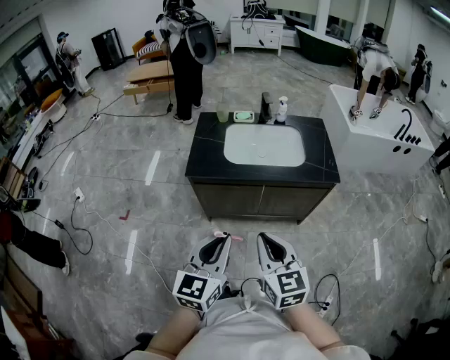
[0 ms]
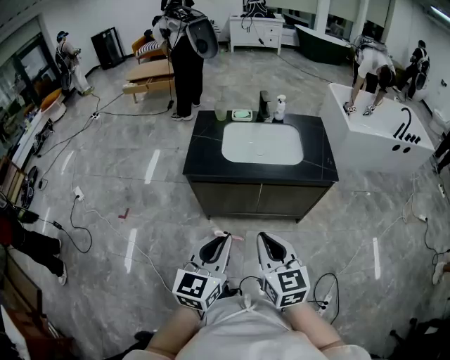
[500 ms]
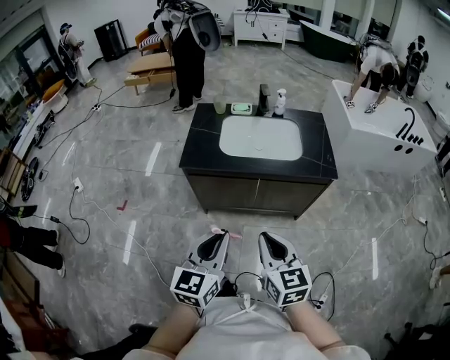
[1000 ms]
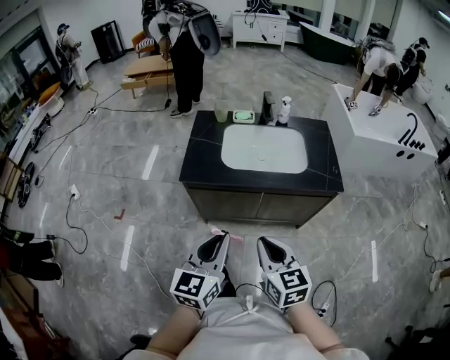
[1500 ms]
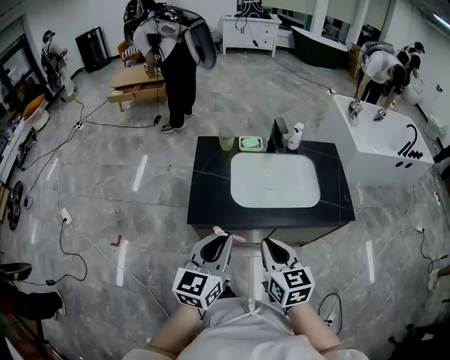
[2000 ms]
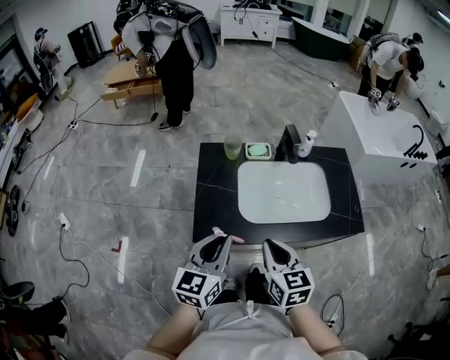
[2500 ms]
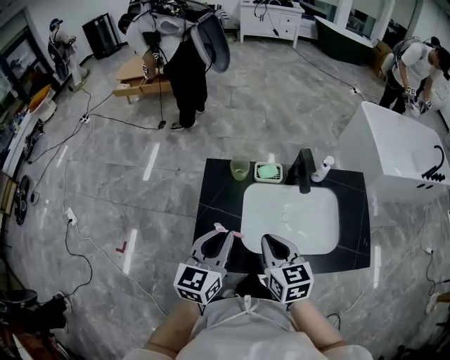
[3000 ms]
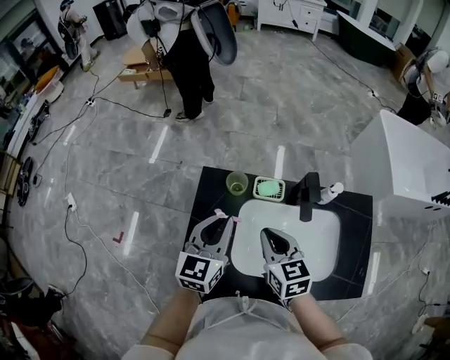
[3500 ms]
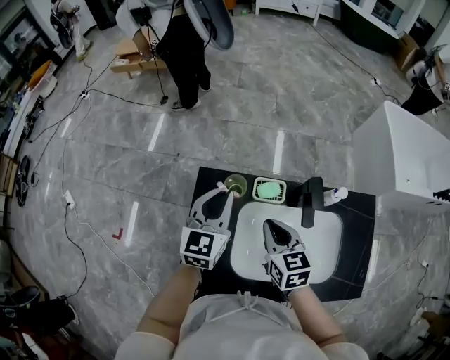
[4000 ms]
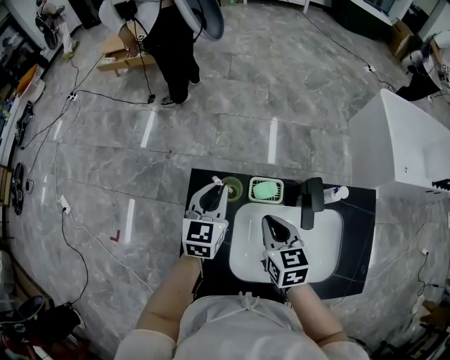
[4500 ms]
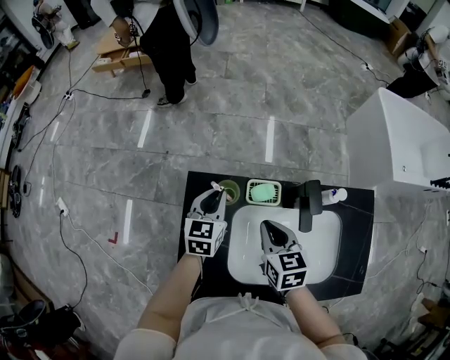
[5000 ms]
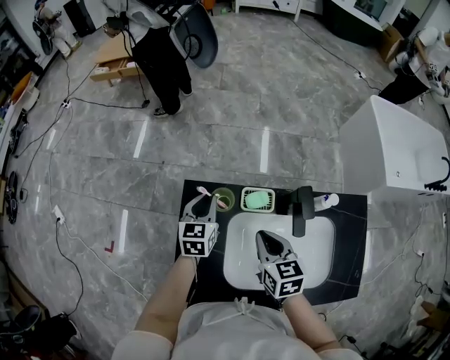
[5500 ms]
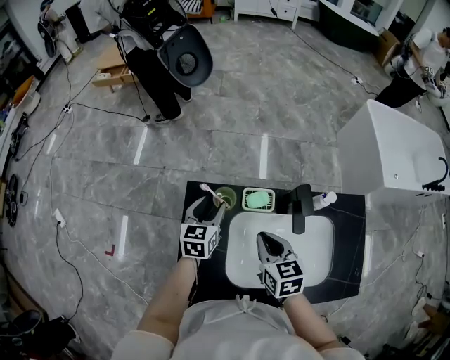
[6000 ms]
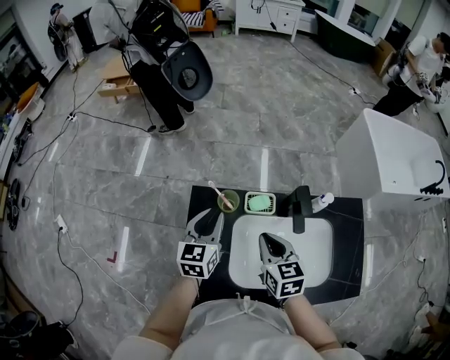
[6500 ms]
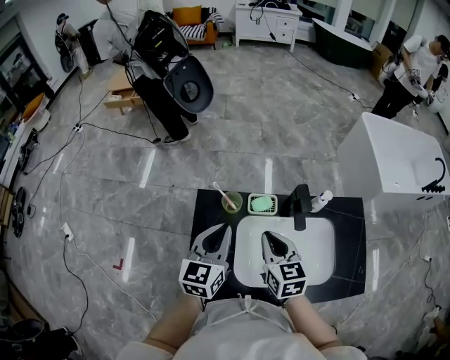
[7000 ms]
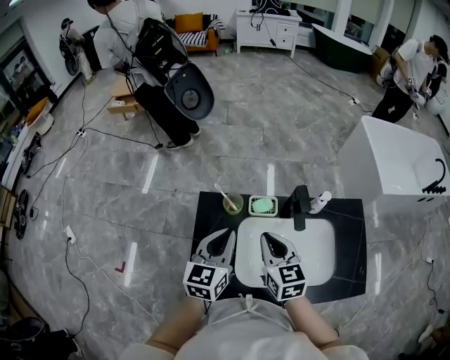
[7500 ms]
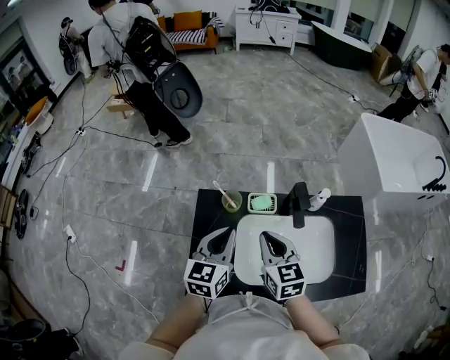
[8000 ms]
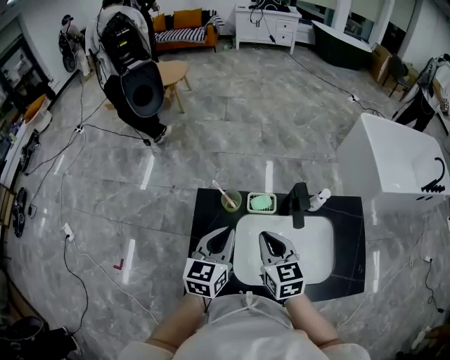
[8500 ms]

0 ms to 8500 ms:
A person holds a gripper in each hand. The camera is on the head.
0 ms to 2000 ms: The two grippers go approximately 20 cm forward.
2000 ms to 4000 ms: Both grippers move forward, about 40 cm.
4000 ms to 6500 ms: The left gripper opens, then closes once more.
6500 ms to 8500 ms: The left gripper shifts some 5 cm backward.

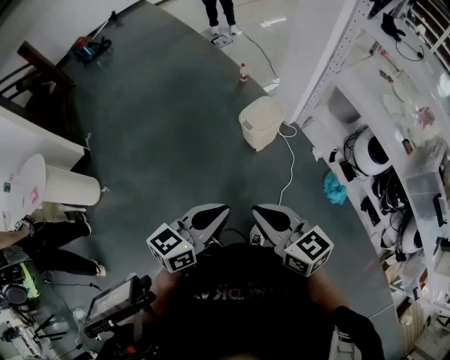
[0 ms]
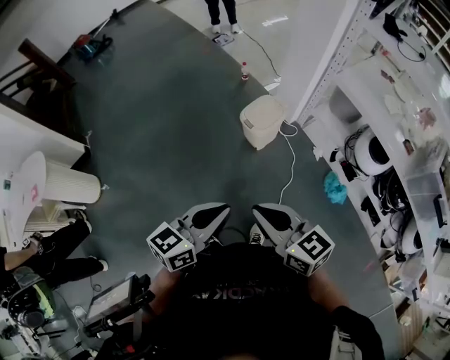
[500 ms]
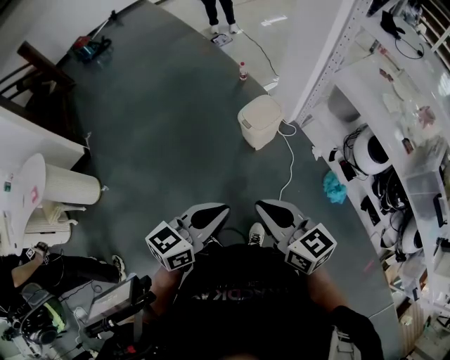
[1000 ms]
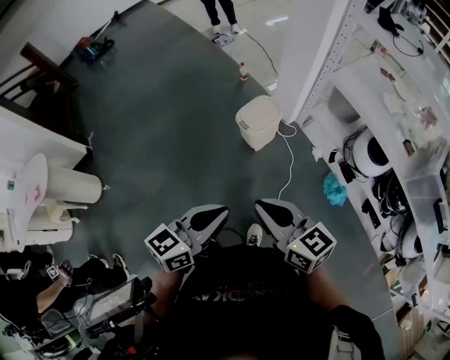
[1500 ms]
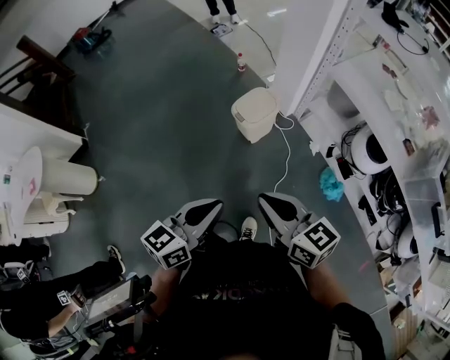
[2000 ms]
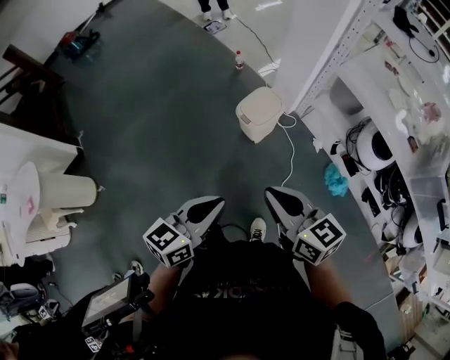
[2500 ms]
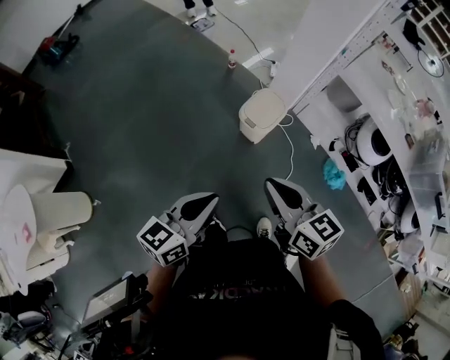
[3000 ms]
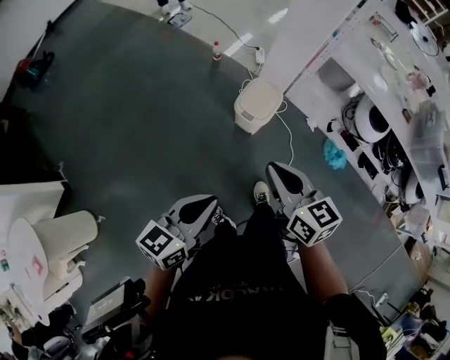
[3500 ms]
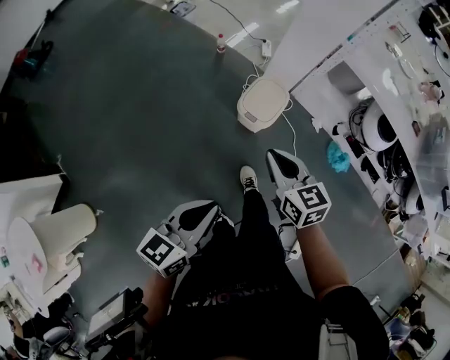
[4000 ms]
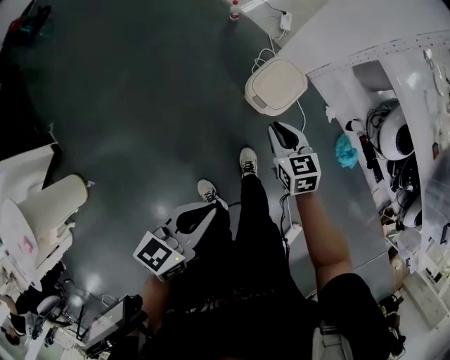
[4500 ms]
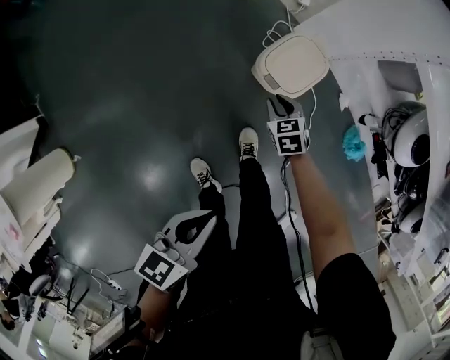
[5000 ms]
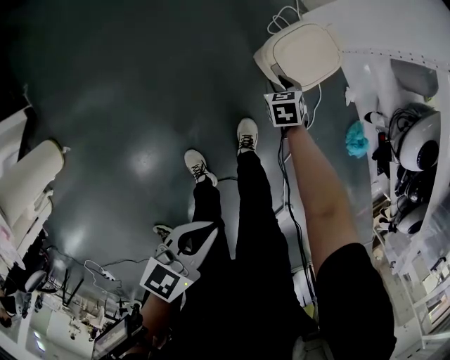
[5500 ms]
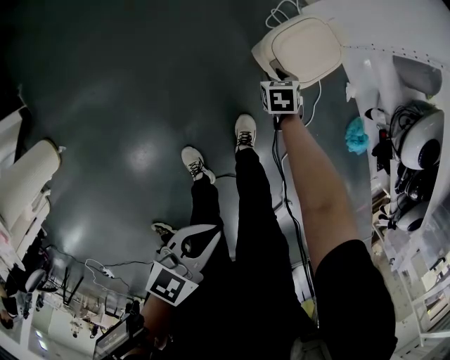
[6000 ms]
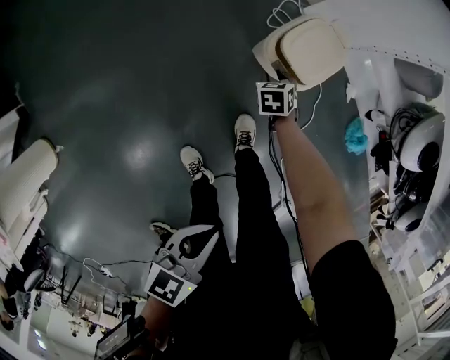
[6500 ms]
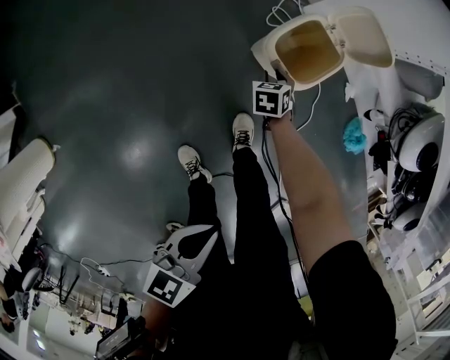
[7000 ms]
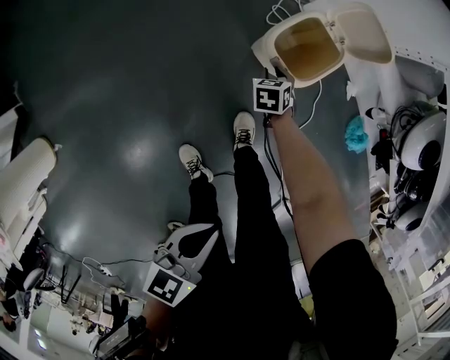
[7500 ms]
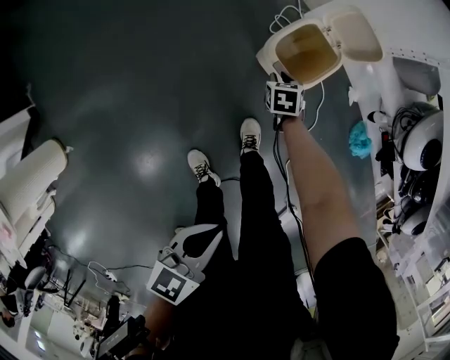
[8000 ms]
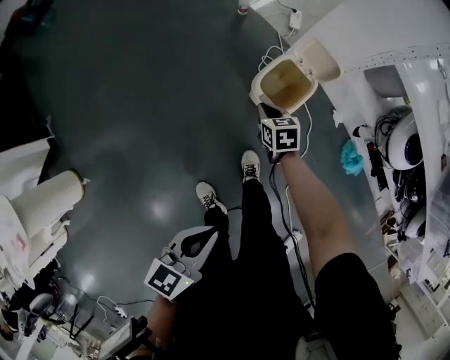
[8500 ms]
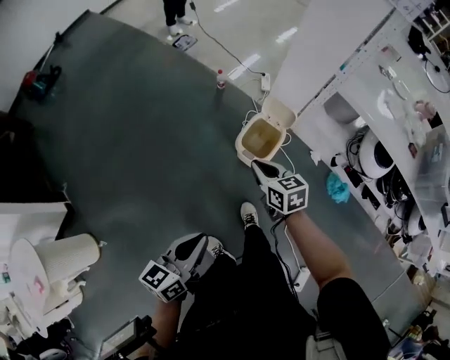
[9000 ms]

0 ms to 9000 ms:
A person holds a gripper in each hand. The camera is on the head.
0 ms to 2000 ms: The left gripper heads to the right, covering roughly 5 cm, while the right gripper heads to the right, covering about 10 cm.
2000 ms to 4500 ms: The right gripper travels forward, downward and to the left by some 50 cm, and swivels approximately 40 degrees. Meanwhile the left gripper moves to the left, forward and downward, some 35 cm.
4500 ms to 7000 ms: The right gripper travels downward by roughly 35 cm, and turns by about 30 degrees, while the left gripper is displaced downward by about 20 cm.
7000 ms to 9000 ms: The left gripper travels upward by roughly 20 cm, and swivels some 20 degrees; the right gripper travels upward by approximately 50 cm, tilts its fingers approximately 30 degrees upward, and closes its fingers.

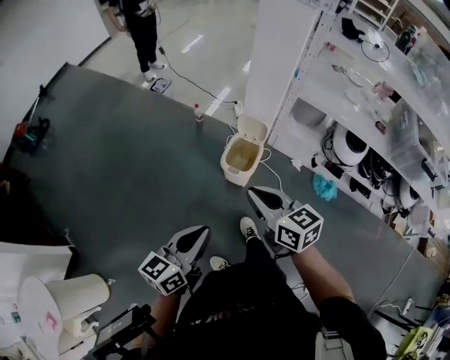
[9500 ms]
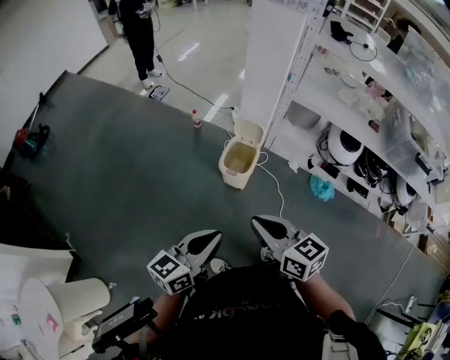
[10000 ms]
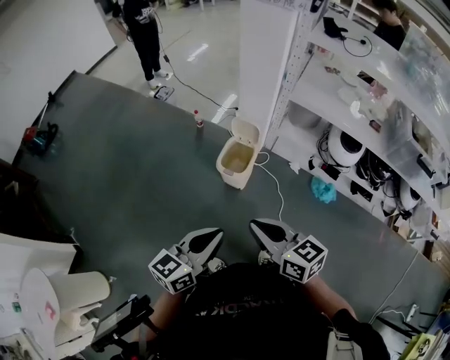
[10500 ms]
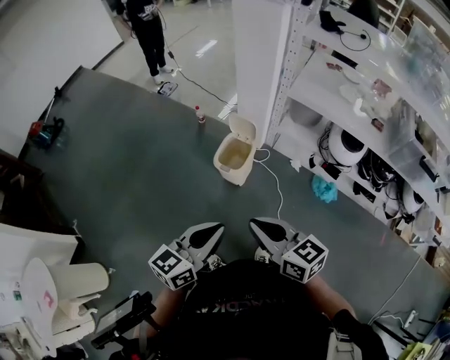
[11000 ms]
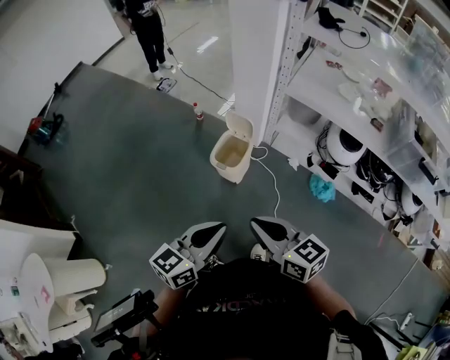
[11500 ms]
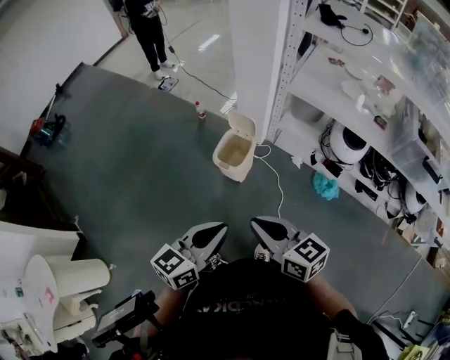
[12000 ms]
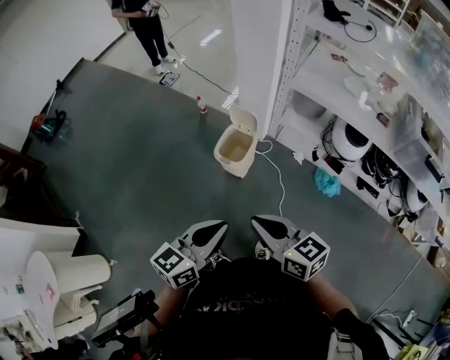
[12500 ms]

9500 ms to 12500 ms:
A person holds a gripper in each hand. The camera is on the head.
9500 ms to 11000 ms: The right gripper moves to the right and backward, about 20 cm. The left gripper shifts some 15 cm to the right.
11000 ms to 12500 ms: The grippers move only a little.

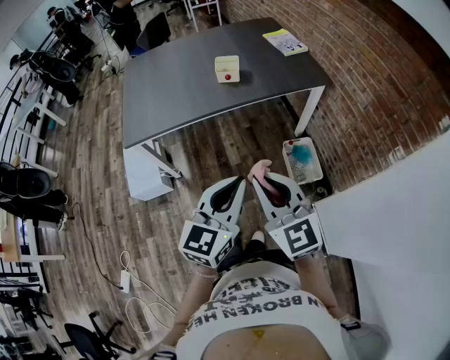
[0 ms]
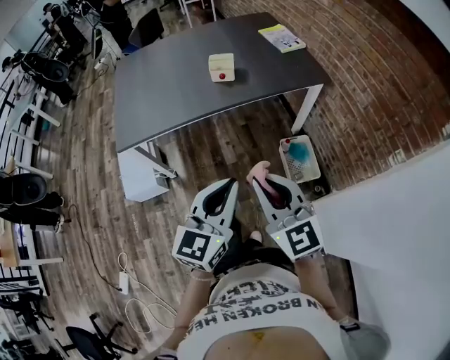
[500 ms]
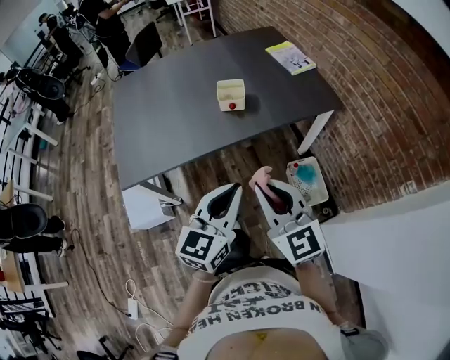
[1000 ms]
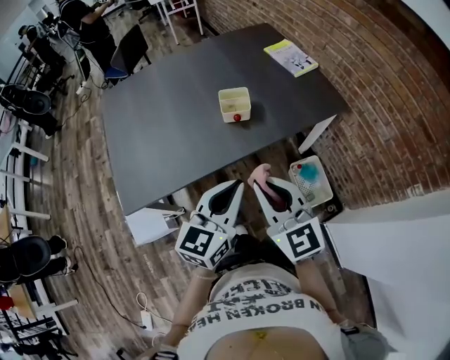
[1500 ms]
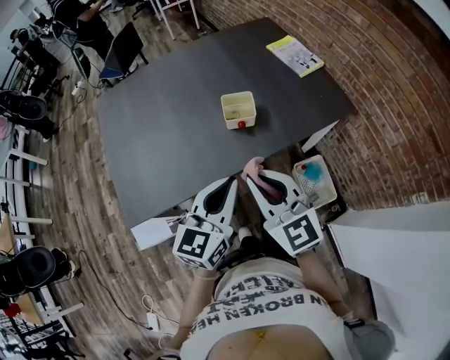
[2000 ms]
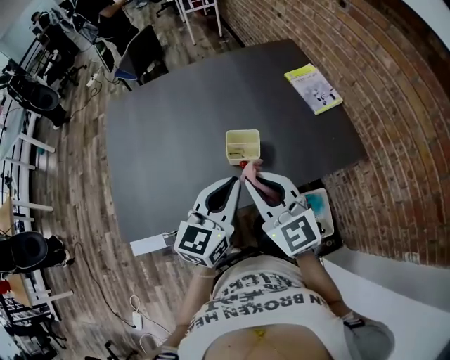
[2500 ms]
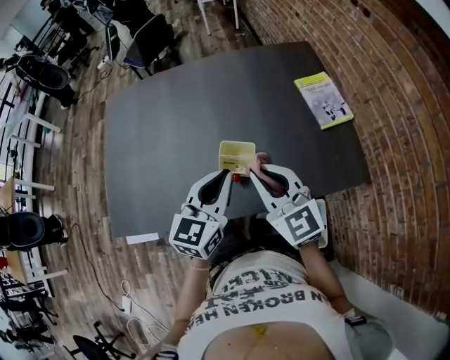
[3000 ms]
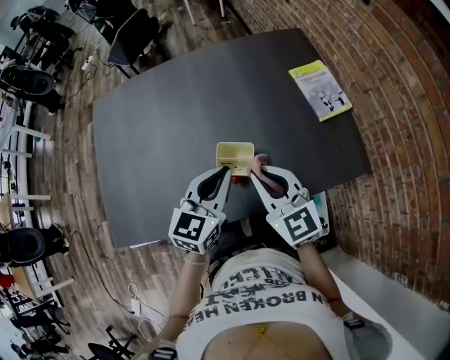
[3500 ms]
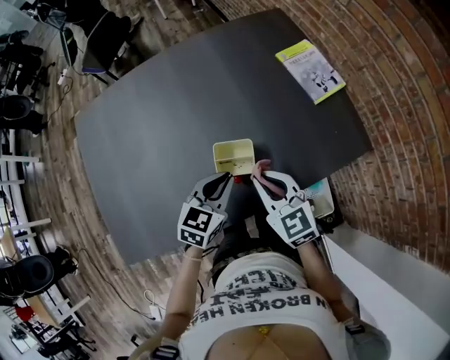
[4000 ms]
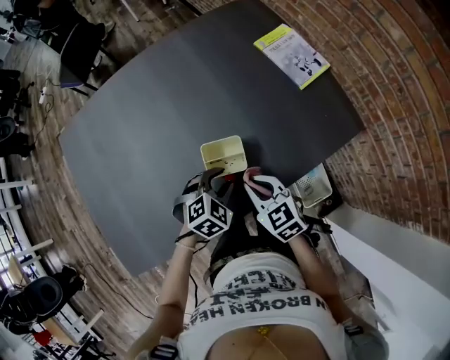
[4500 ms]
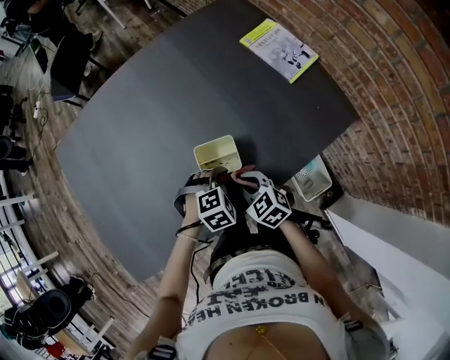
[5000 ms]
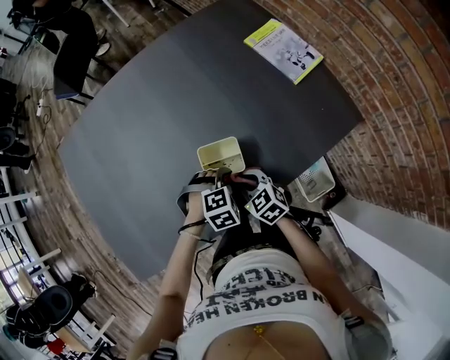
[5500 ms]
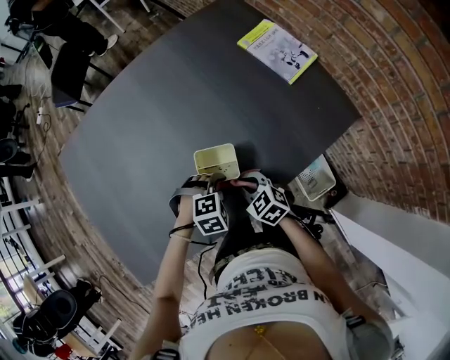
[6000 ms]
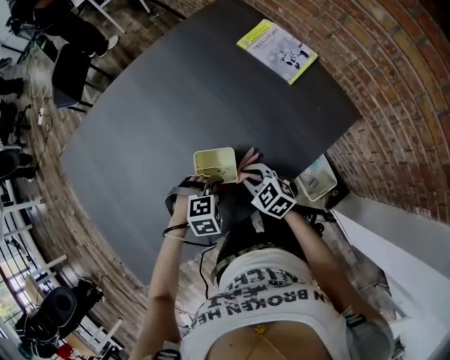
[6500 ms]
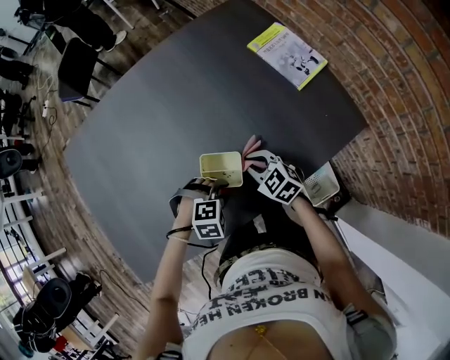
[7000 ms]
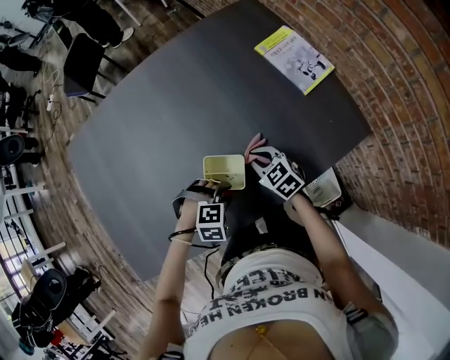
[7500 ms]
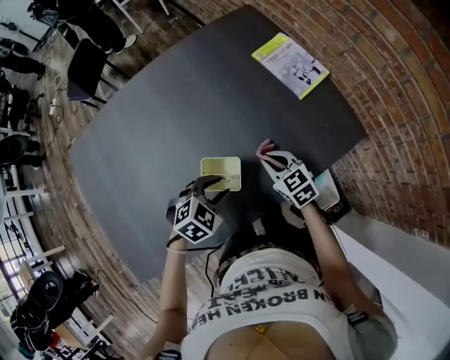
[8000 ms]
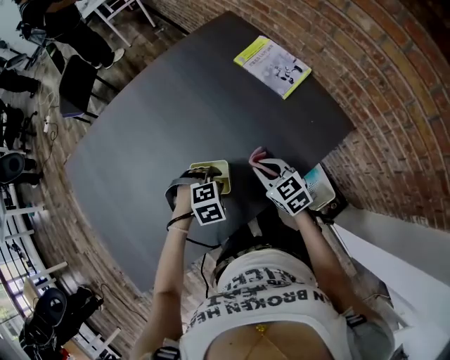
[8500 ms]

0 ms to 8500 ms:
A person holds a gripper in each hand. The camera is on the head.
0 ms to 2000 ms: The two grippers go about 35 cm forward.
2000 ms to 4000 ms: Both grippers travel together forward and downward, some 30 cm. The right gripper turns by about 20 degrees. Meanwhile the left gripper turns by roughly 30 degrees.
4000 ms to 6500 ms: The grippers both shift downward by approximately 15 cm. The left gripper points its fingers about 40 degrees further downward, and opens.
6500 ms to 8500 ms: The left gripper travels forward by some 5 cm. Meanwhile the right gripper travels to the right and forward by roughly 10 cm.
